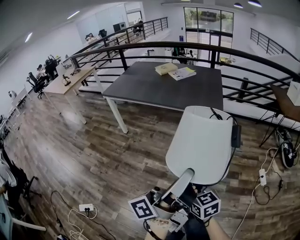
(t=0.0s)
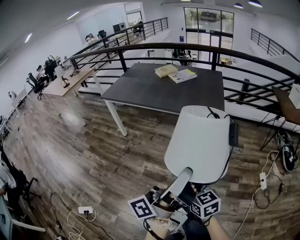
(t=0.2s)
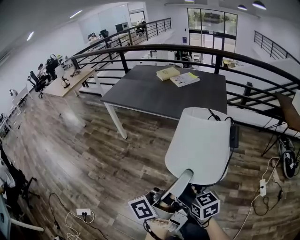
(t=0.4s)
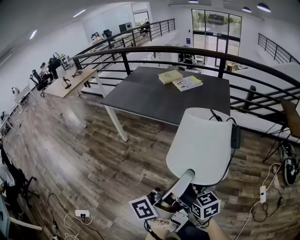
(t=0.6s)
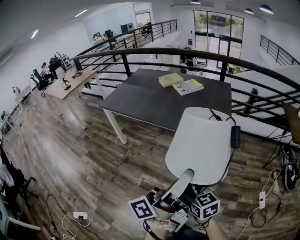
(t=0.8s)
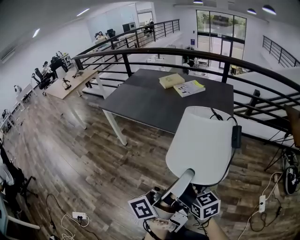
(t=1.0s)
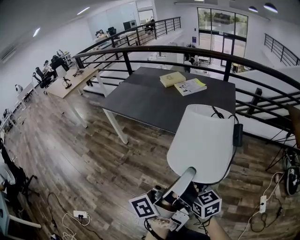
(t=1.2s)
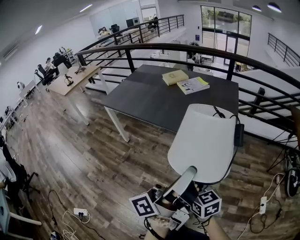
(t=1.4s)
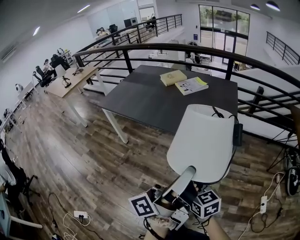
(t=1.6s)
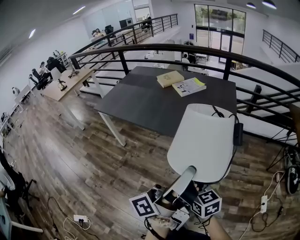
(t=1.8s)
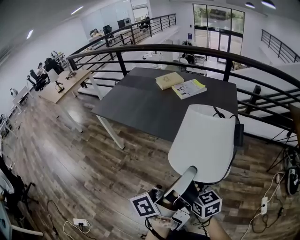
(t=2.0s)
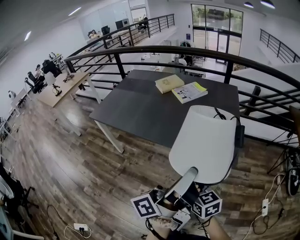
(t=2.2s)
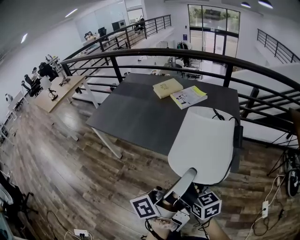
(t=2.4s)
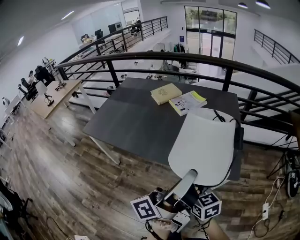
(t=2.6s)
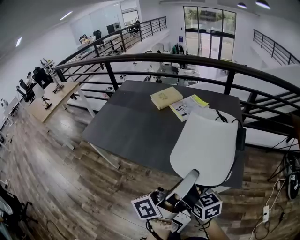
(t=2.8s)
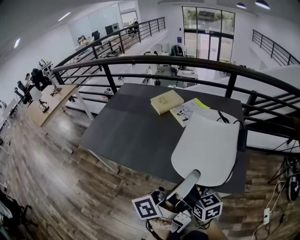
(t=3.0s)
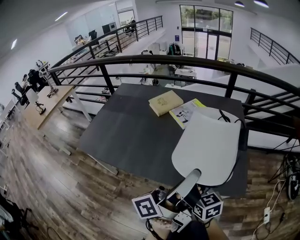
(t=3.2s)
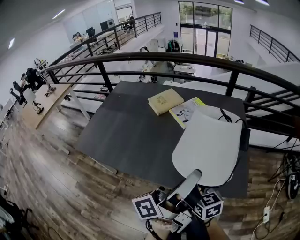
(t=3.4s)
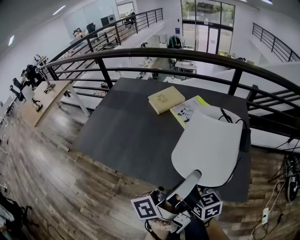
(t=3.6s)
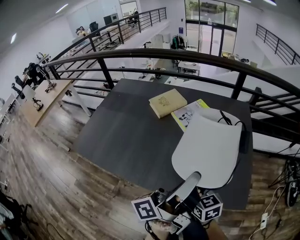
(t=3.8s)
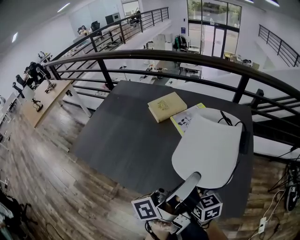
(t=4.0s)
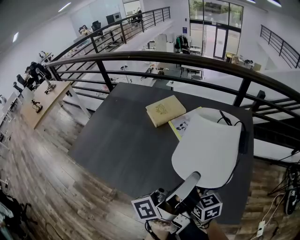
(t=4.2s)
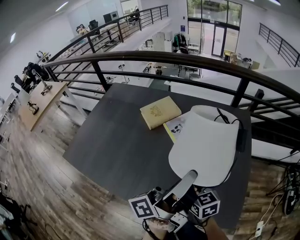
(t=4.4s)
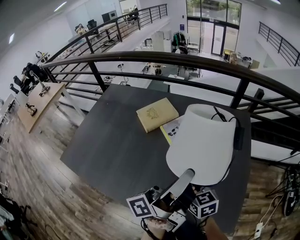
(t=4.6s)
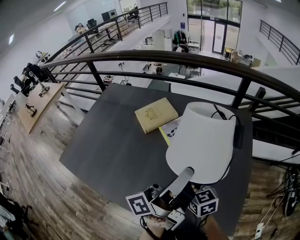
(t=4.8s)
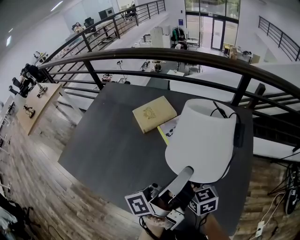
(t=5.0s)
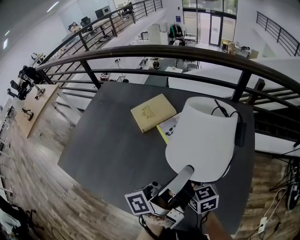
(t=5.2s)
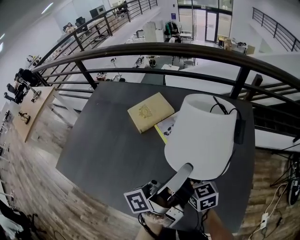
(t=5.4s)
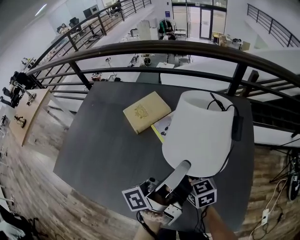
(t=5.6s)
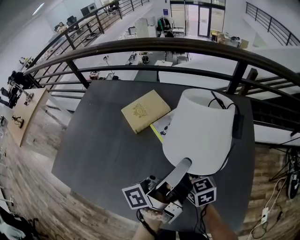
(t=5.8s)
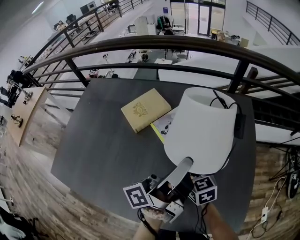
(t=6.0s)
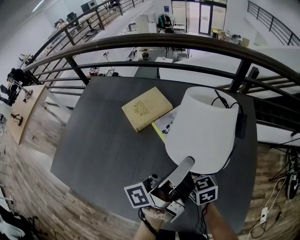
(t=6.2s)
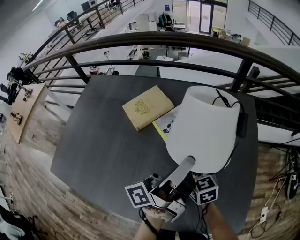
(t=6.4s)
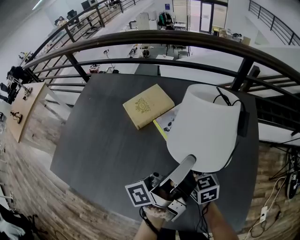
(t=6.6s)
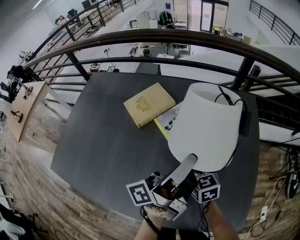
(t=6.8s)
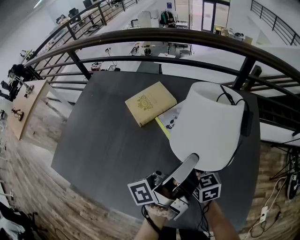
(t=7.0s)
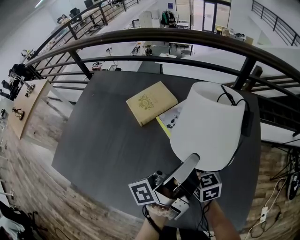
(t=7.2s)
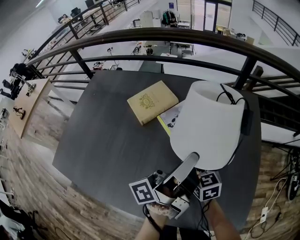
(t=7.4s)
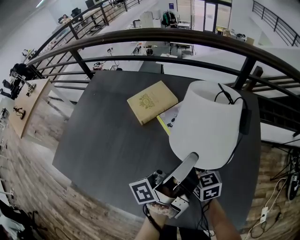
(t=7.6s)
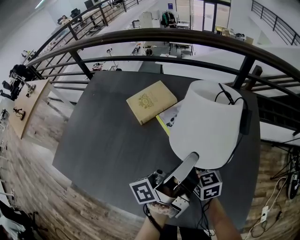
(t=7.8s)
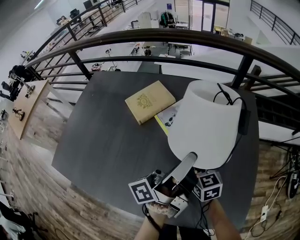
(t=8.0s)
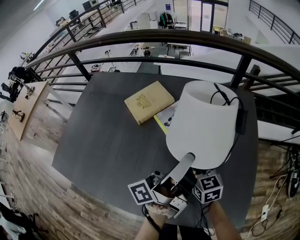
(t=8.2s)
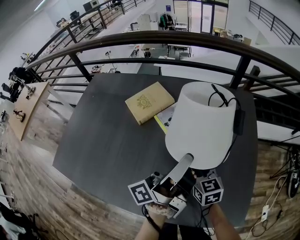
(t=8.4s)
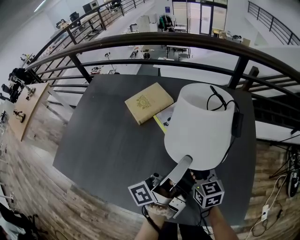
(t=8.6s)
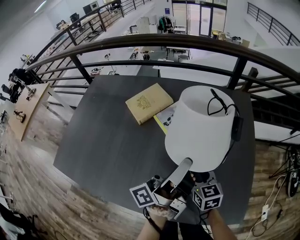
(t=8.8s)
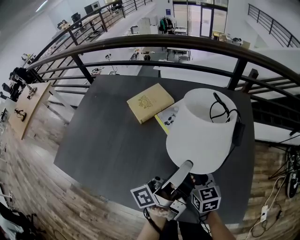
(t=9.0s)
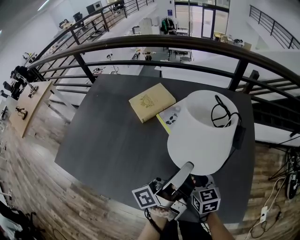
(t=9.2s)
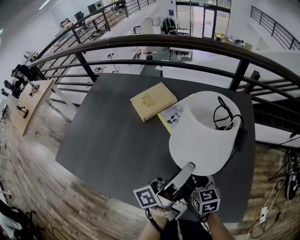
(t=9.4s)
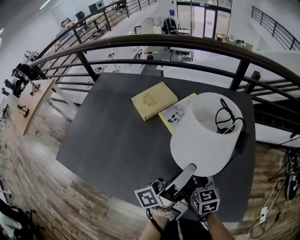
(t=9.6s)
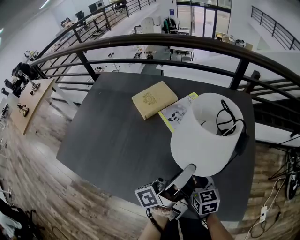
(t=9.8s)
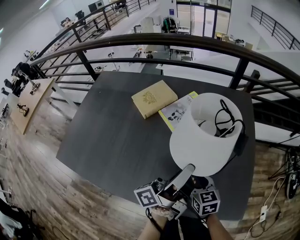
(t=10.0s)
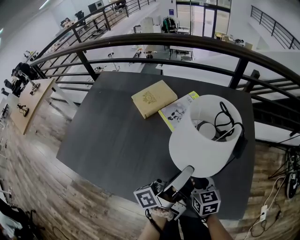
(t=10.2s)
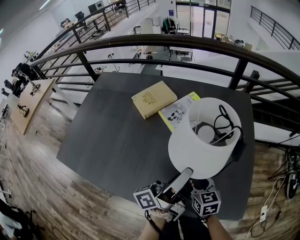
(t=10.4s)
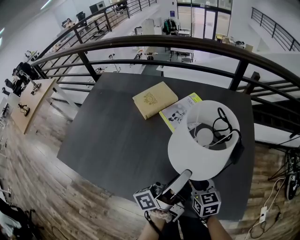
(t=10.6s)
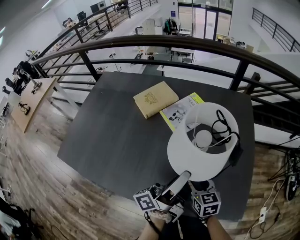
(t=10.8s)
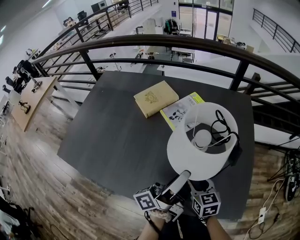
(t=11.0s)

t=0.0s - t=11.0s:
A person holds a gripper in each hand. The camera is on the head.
t=0.0s - t=1.6s: The right gripper moves approximately 30 cm.
t=1.6s - t=3.2s: The right gripper shifts by about 35 cm.
t=3.2s - t=4.8s: The right gripper ends up roughly 25 cm from where it was.
t=4.8s - t=6.2s: The right gripper shifts by some 10 cm.
t=7.8s - t=9.4s: The right gripper moves approximately 10 cm.

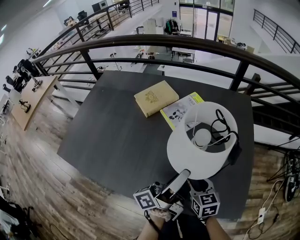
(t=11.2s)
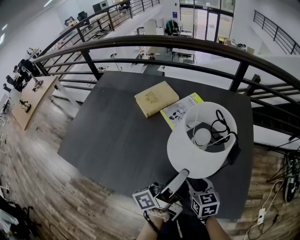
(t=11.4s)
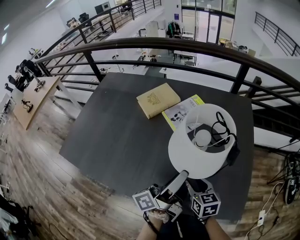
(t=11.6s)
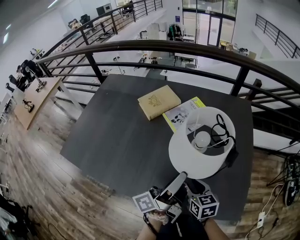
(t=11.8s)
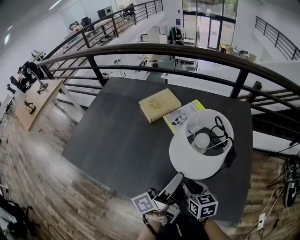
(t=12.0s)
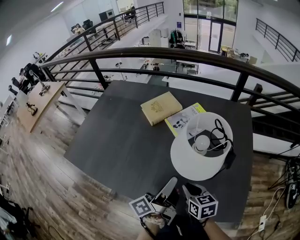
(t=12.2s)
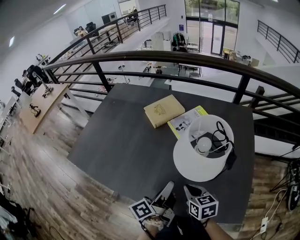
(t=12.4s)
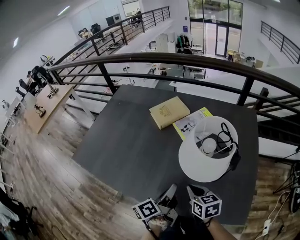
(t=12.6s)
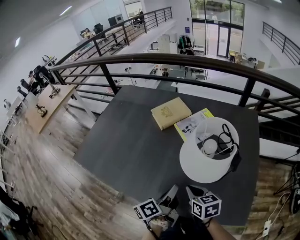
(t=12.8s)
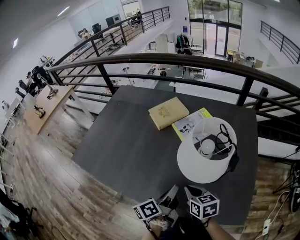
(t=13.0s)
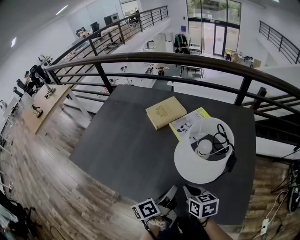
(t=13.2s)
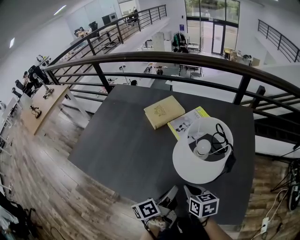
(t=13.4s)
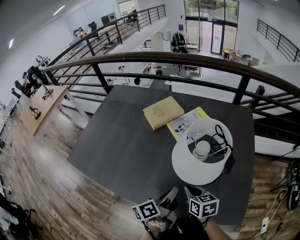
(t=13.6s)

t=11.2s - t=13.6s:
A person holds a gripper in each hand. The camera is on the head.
t=11.2s - t=12.4s: The right gripper ends up about 5 cm from where it was, and closes.

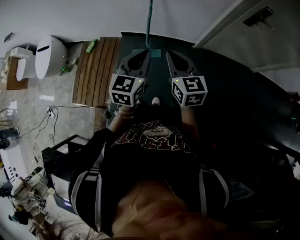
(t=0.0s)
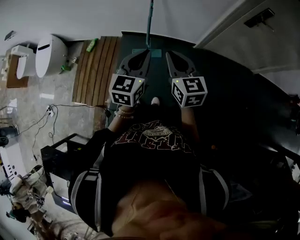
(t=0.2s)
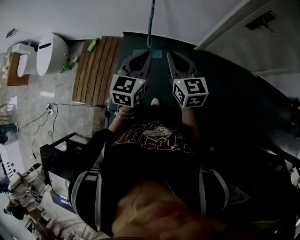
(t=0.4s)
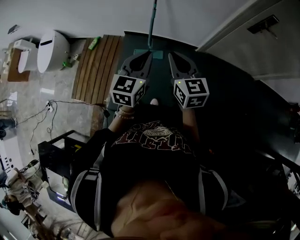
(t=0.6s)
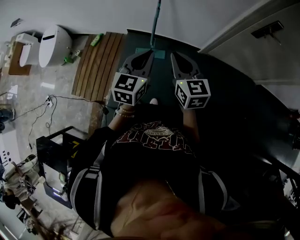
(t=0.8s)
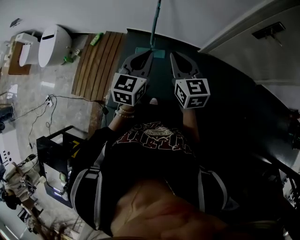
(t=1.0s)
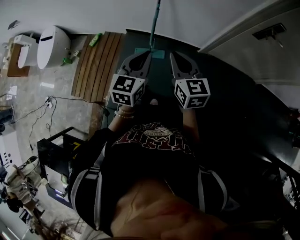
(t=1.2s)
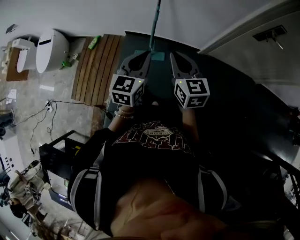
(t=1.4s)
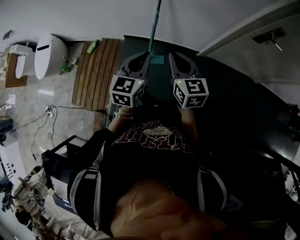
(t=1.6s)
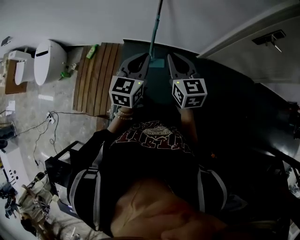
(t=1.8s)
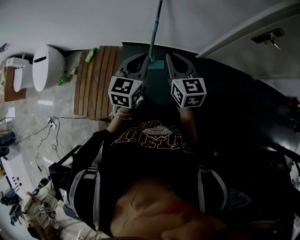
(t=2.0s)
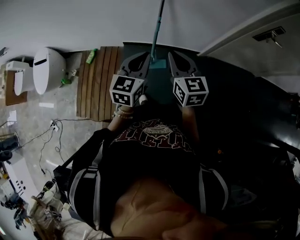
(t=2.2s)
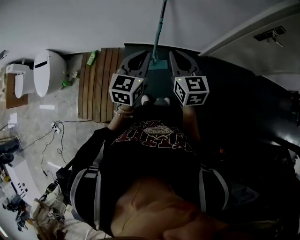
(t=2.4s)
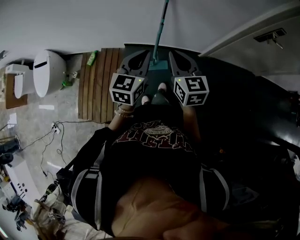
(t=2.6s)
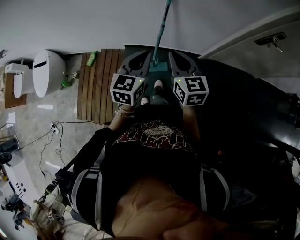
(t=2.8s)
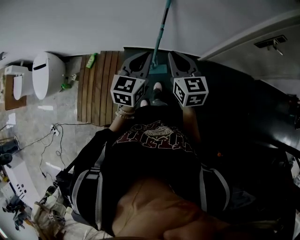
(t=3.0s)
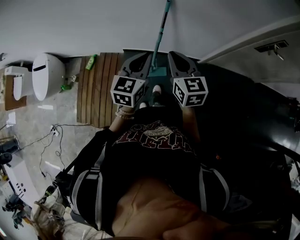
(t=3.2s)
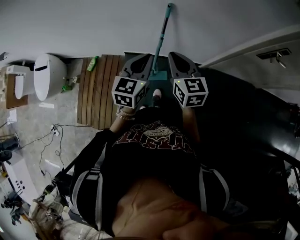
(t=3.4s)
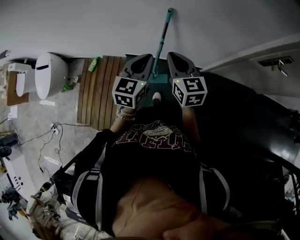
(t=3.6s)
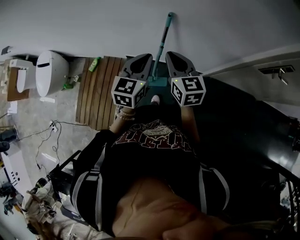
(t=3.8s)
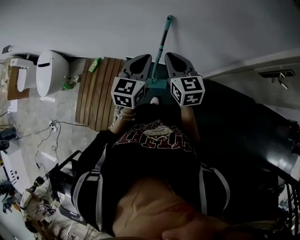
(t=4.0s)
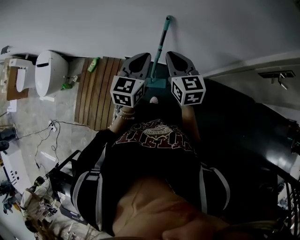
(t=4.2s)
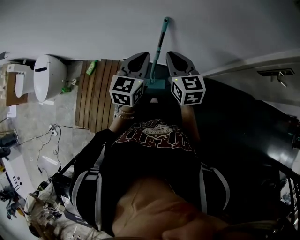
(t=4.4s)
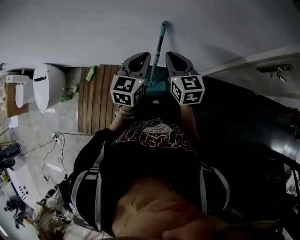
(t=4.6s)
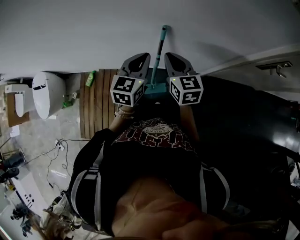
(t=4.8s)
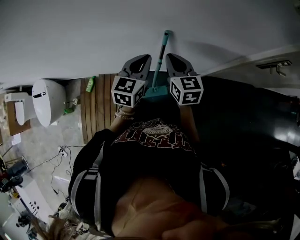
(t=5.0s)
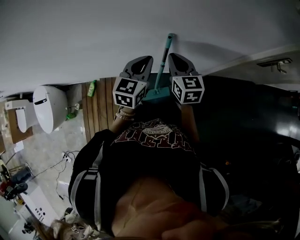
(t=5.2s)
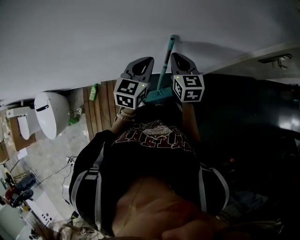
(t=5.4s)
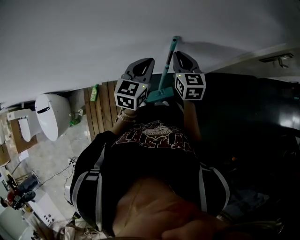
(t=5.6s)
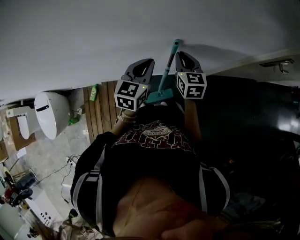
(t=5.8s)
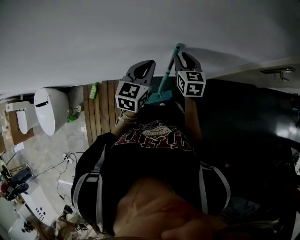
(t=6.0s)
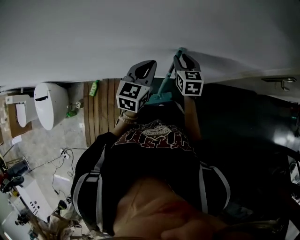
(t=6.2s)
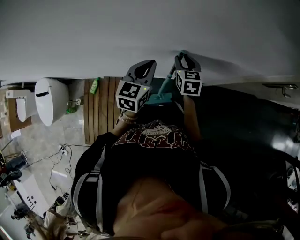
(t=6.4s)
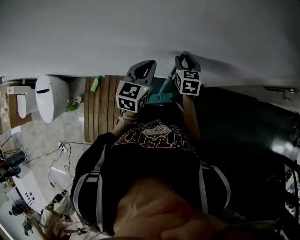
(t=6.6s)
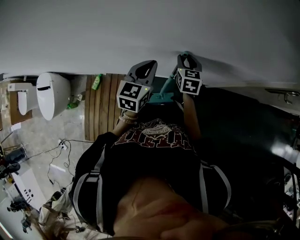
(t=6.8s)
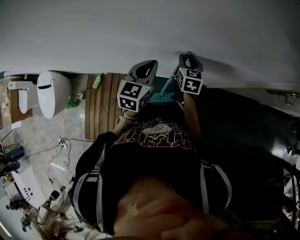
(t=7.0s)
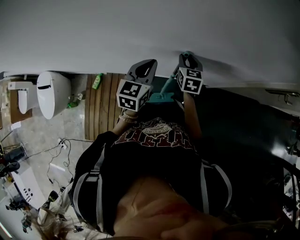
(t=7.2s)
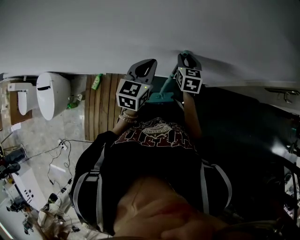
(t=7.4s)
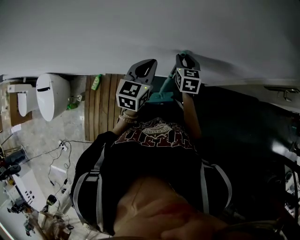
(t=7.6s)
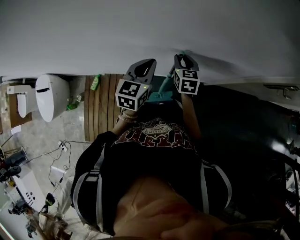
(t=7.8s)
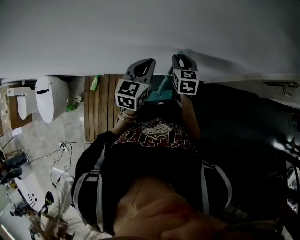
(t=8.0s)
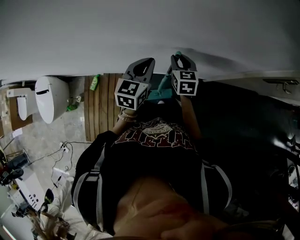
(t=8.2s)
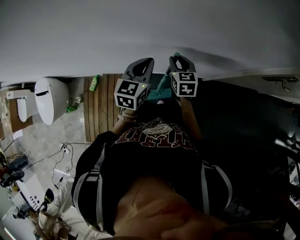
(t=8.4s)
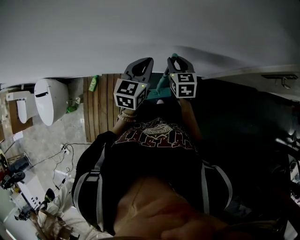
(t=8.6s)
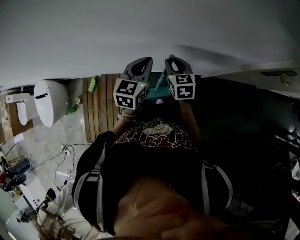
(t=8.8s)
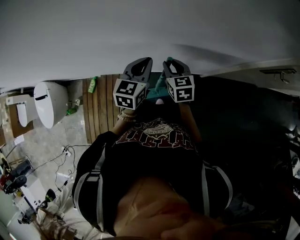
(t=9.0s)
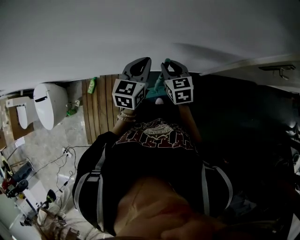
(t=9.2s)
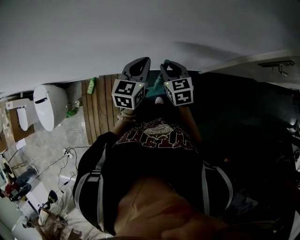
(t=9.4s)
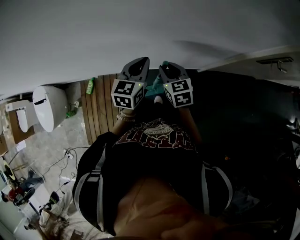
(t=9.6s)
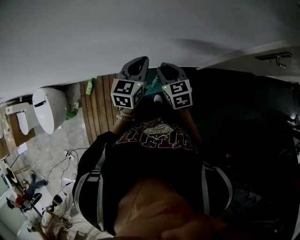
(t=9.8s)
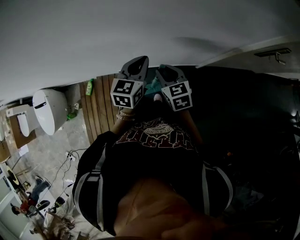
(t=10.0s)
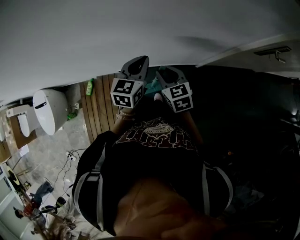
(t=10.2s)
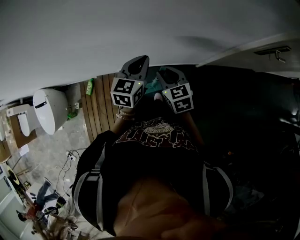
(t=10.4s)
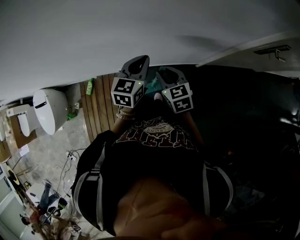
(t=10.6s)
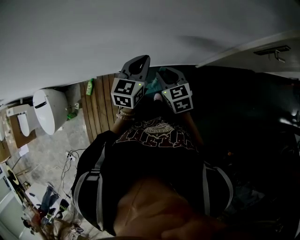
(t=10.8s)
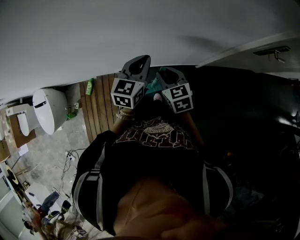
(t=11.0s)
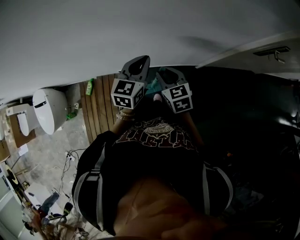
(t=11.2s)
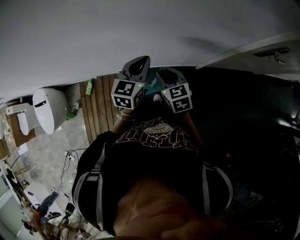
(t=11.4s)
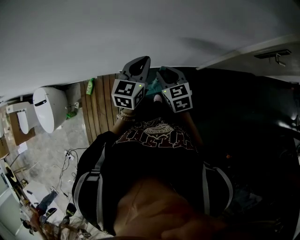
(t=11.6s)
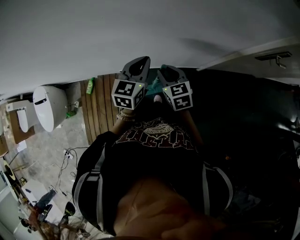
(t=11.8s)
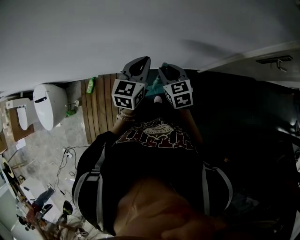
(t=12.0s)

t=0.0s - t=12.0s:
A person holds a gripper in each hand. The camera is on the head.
t=0.0s - t=1.6s: The two grippers go about 10 cm forward.
t=1.6s - t=3.0s: The two grippers go some 15 cm forward and to the left.
t=3.0s - t=4.4s: The grippers both shift forward by approximately 20 cm.
t=4.4s - t=6.0s: The left gripper is displaced forward and to the left by some 15 cm; the right gripper heads forward and downward, covering about 15 cm, swivels some 20 degrees, and opens its fingers.
t=6.0s - t=7.6s: The right gripper changes place by some 5 cm.
t=7.6s - t=9.0s: The right gripper moves backward, about 10 cm.
t=9.0s - t=10.4s: The left gripper ends up about 5 cm from where it was. Meanwhile the right gripper travels backward by some 10 cm.
t=10.4s - t=12.0s: The grippers make only small movements.
